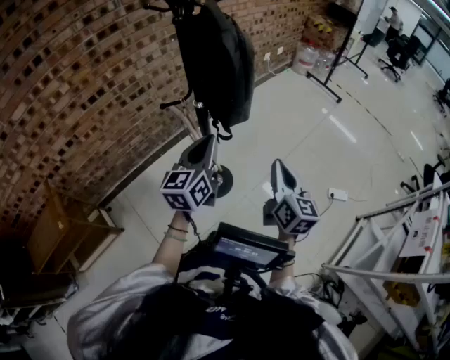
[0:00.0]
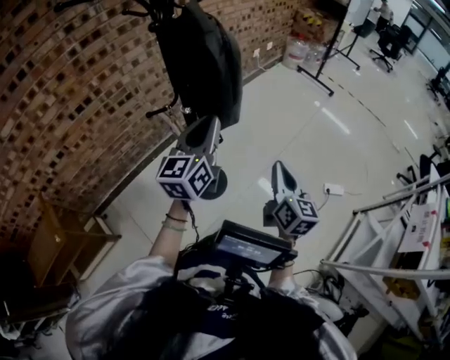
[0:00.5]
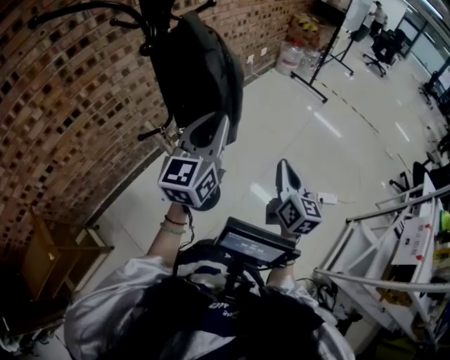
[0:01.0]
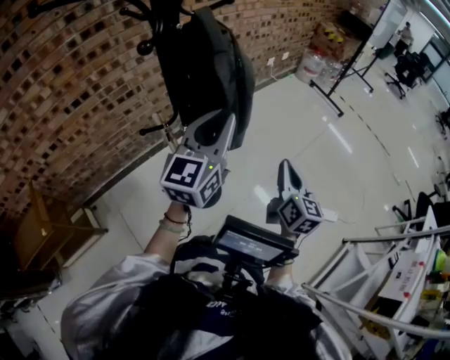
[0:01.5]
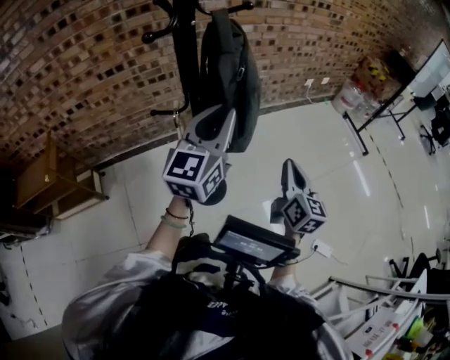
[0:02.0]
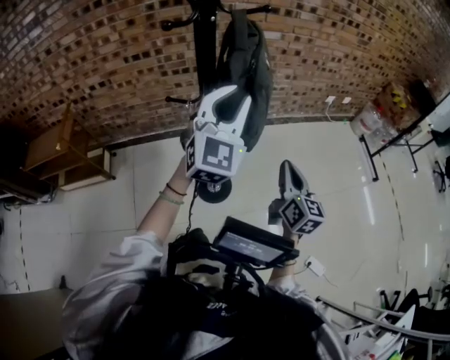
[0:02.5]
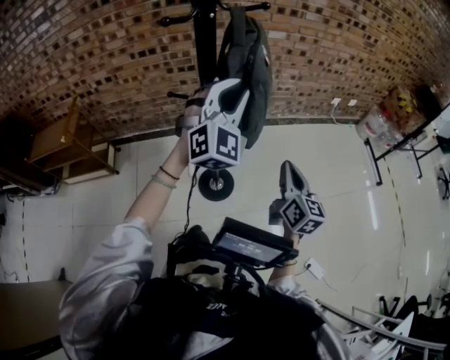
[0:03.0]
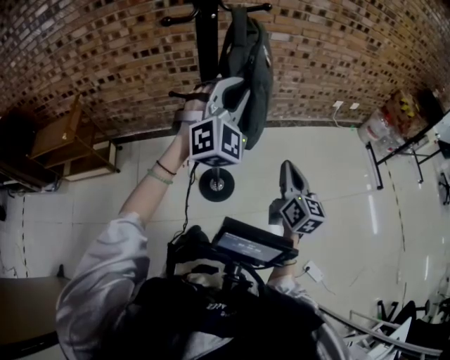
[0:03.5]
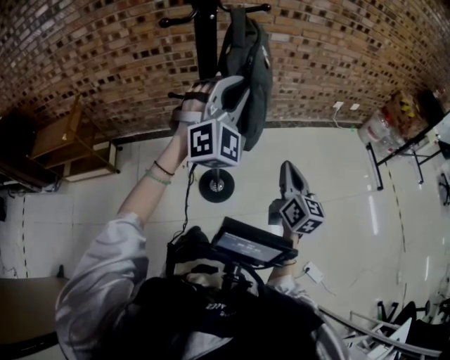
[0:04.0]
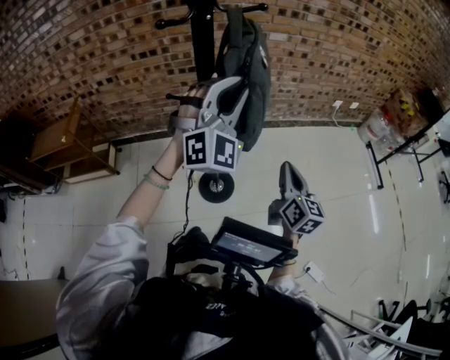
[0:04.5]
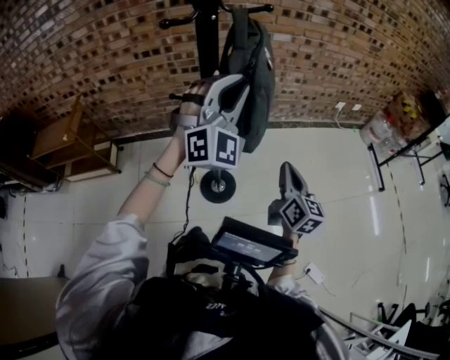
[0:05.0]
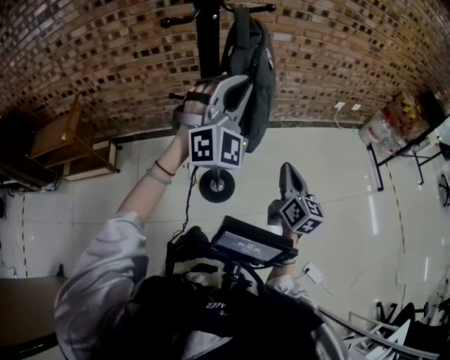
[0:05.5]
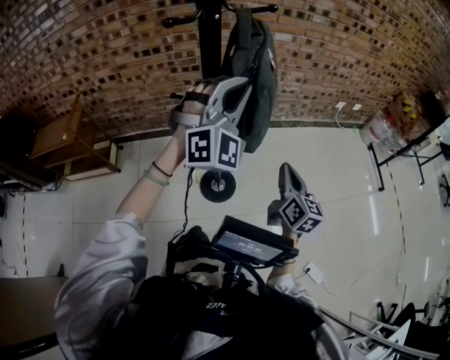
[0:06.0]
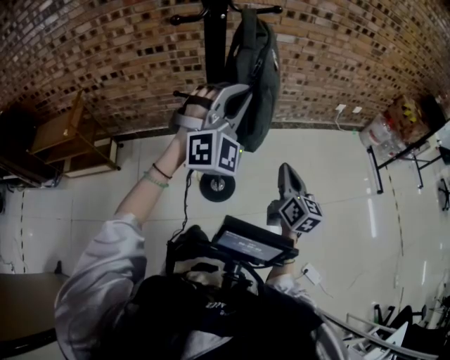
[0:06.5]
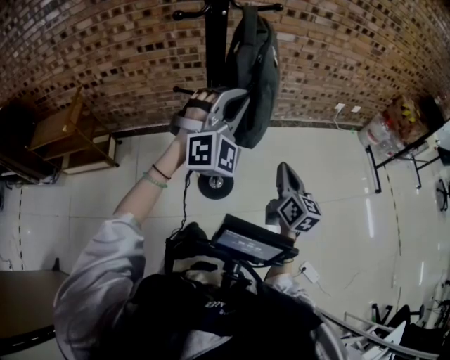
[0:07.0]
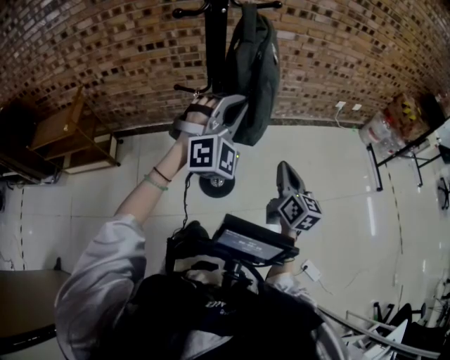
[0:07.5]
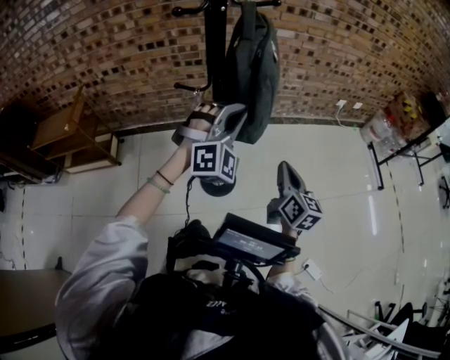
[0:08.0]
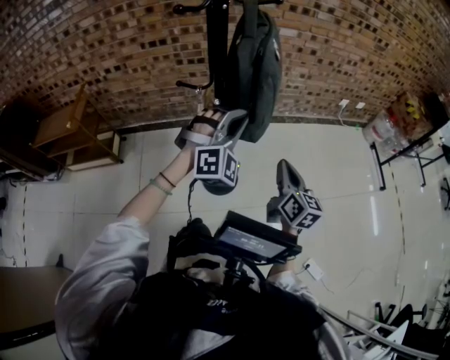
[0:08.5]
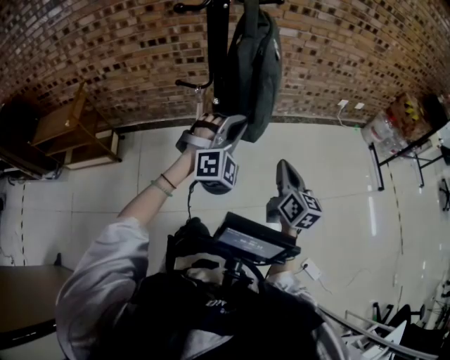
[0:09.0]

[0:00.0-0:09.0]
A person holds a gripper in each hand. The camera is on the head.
0.0 to 2.0 s: The right gripper is displaced forward by roughly 20 cm. Meanwhile the left gripper travels forward, upward and to the right by about 20 cm, and changes its angle by about 20 degrees.
2.0 to 4.5 s: The left gripper rolls clockwise, seen from behind, by approximately 70 degrees.
4.5 to 7.0 s: There are only small adjustments of the grippers.
7.0 to 9.0 s: The left gripper is displaced downward by some 10 cm.

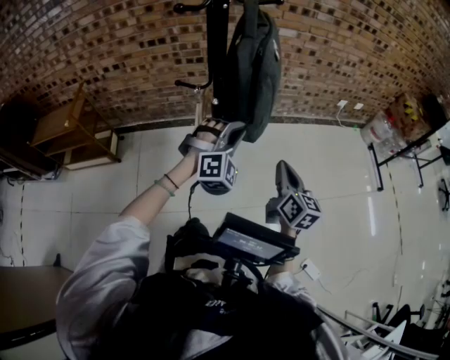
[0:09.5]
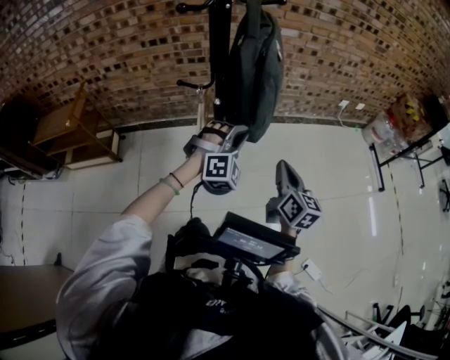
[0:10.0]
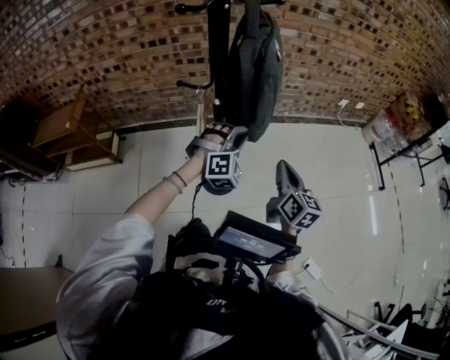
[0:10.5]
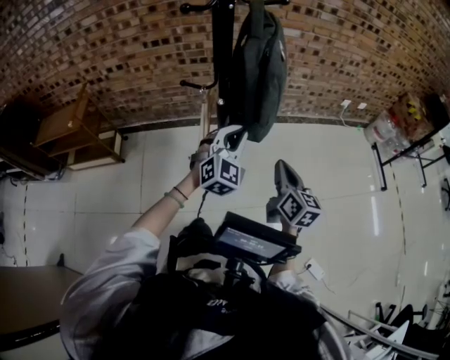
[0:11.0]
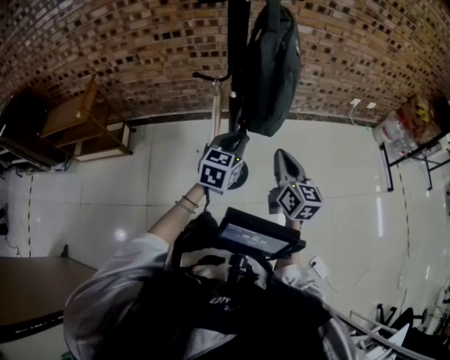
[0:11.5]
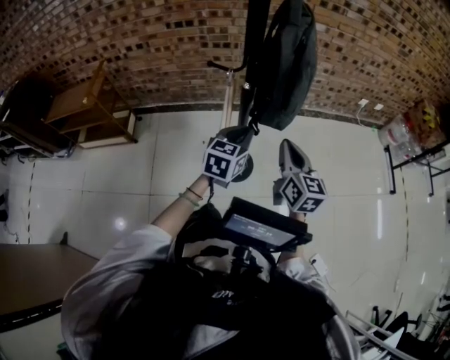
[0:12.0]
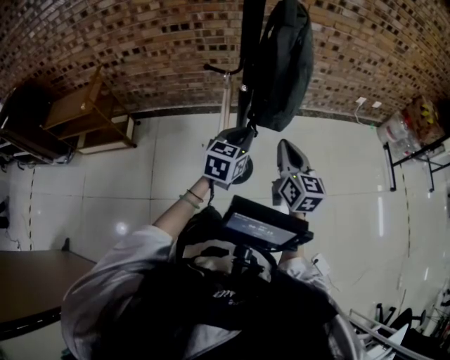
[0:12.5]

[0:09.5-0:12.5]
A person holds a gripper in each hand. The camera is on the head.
9.5 to 11.0 s: The left gripper rotates approximately 30 degrees.
11.0 to 12.5 s: The left gripper heads downward, covering some 5 cm, and twists approximately 40 degrees counterclockwise, seen from behind. The right gripper moves to the left, about 5 cm.

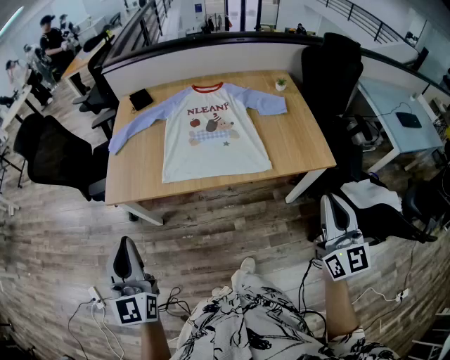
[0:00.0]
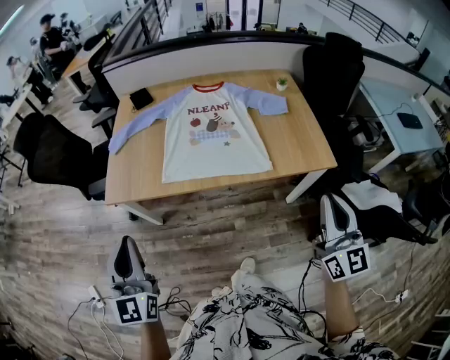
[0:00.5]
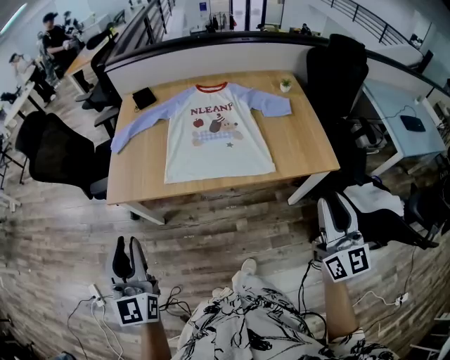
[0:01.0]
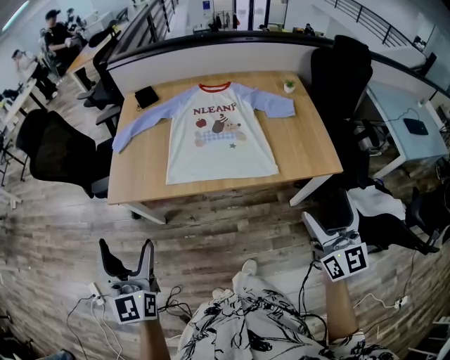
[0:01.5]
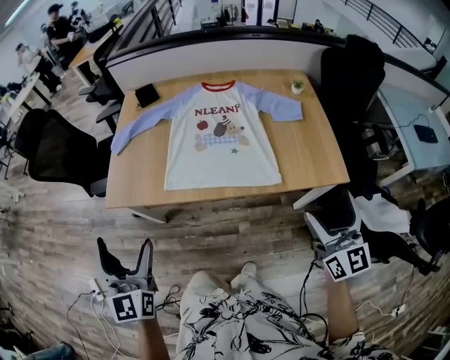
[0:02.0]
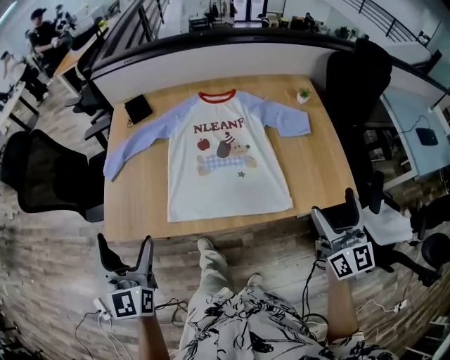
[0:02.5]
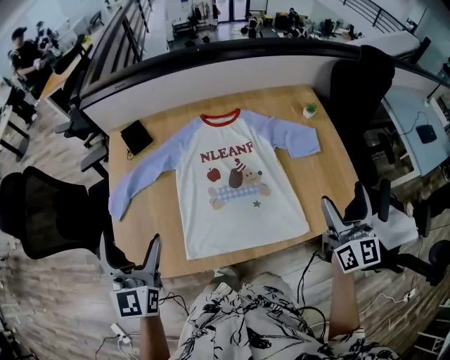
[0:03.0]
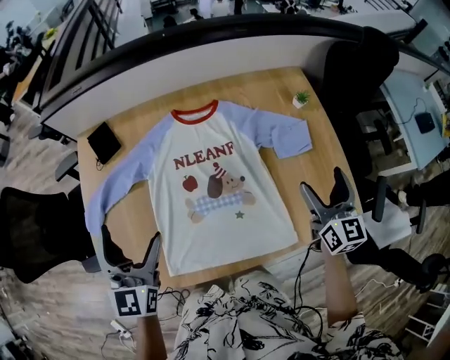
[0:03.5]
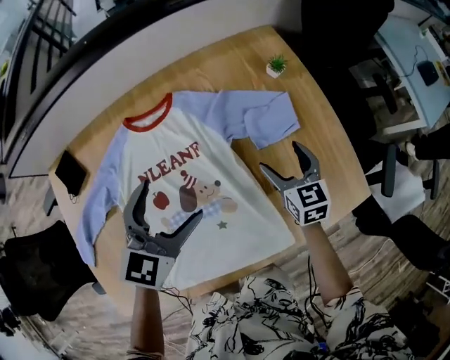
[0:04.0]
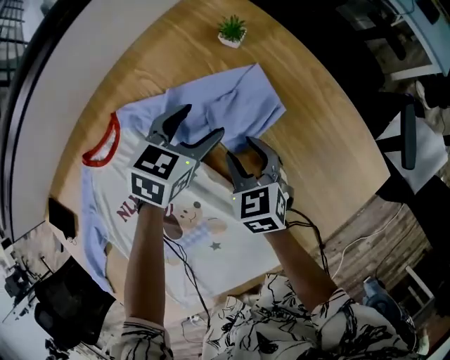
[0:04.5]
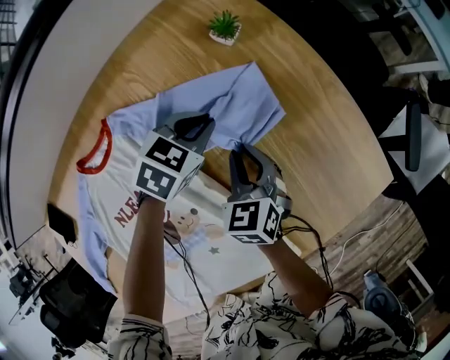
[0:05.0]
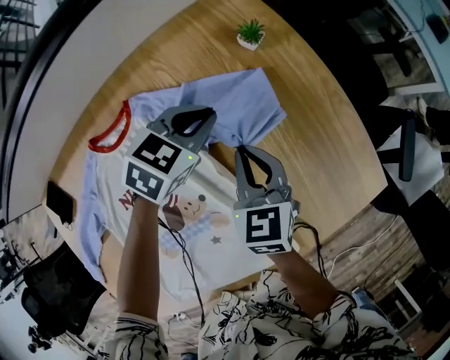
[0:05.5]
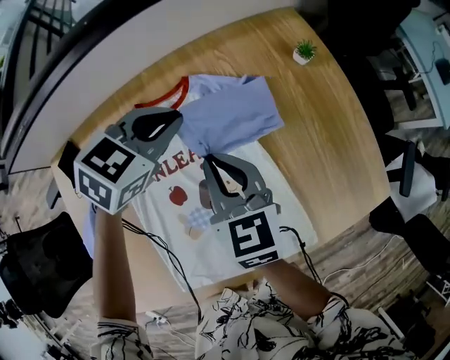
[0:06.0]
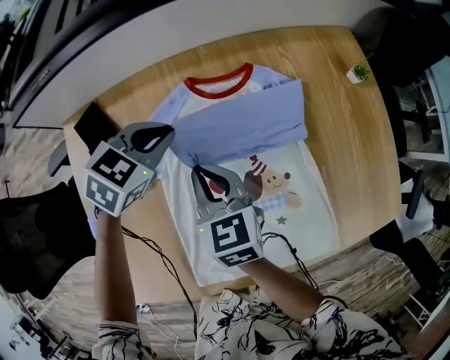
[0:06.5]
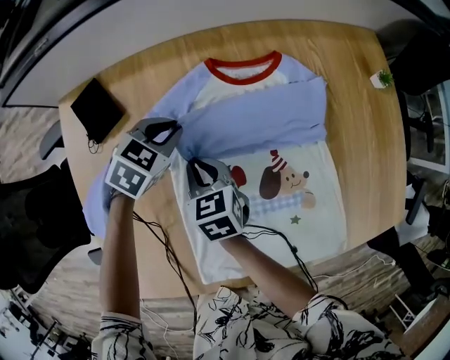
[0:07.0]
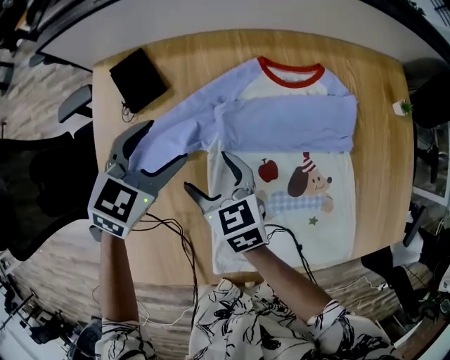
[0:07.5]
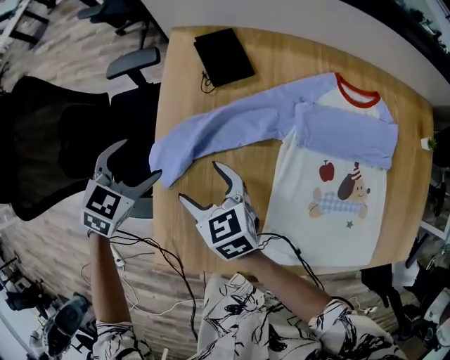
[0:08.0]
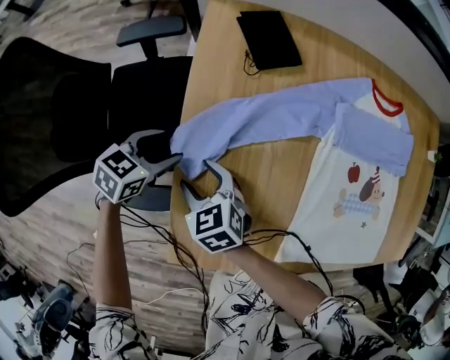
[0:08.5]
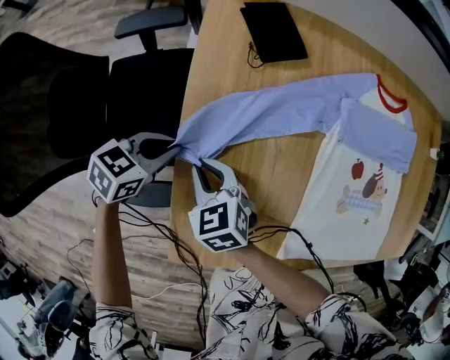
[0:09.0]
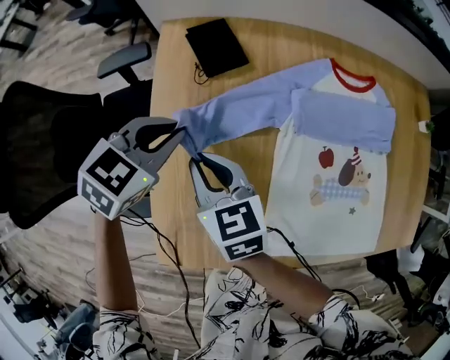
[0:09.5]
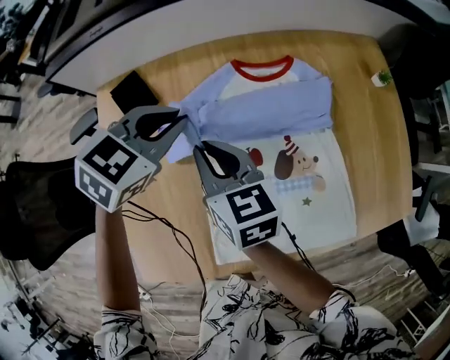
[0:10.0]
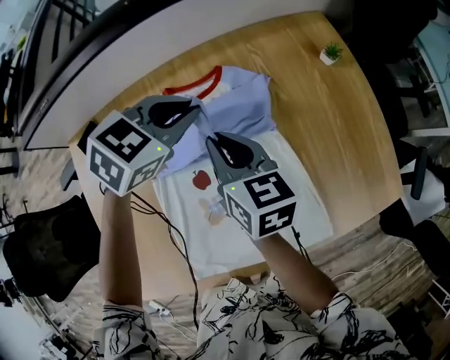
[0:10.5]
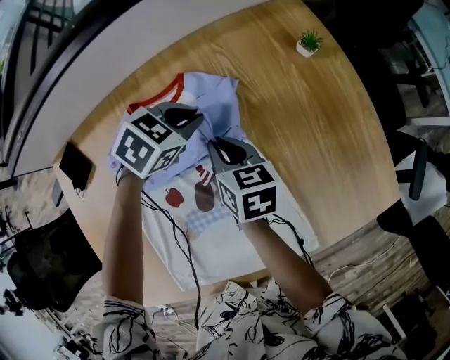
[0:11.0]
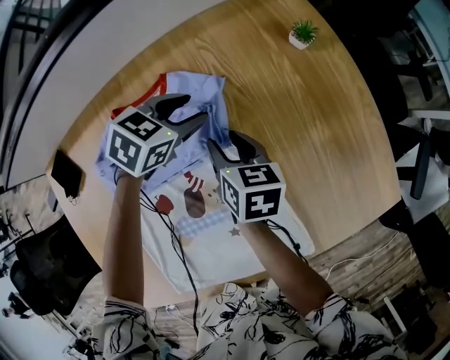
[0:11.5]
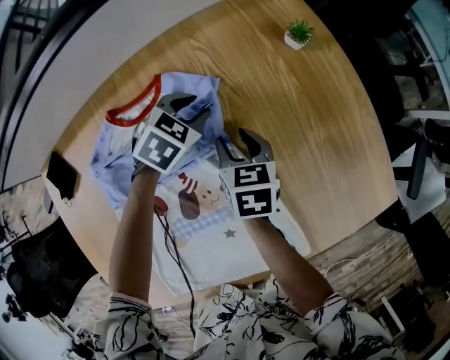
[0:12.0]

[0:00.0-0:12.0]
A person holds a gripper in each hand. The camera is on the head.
0.0 to 2.0 s: The grippers both shift forward by approximately 10 cm. The right gripper opens up; the left gripper opens up.
2.0 to 4.0 s: Both grippers are carried roughly 50 cm. The right gripper angles its fingers downward, by about 30 degrees, while the left gripper changes its angle by approximately 60 degrees.
4.0 to 6.0 s: The right gripper shifts by some 25 cm, and closes; the left gripper reaches approximately 20 cm downward, then returns, swivels roughly 20 degrees, and closes its fingers.
6.0 to 8.0 s: Both grippers are carried about 60 cm. The right gripper rotates roughly 40 degrees, and opens. Meanwhile the left gripper rotates roughly 40 degrees, and opens up.
8.0 to 10.0 s: The left gripper changes place by about 40 cm, rotates about 30 degrees, and closes. The right gripper ends up about 30 cm from where it was, swivels about 30 degrees, and closes.
10.0 to 12.0 s: The grippers both shift to the right, forward and downward by roughly 40 cm. The right gripper rotates about 30 degrees.

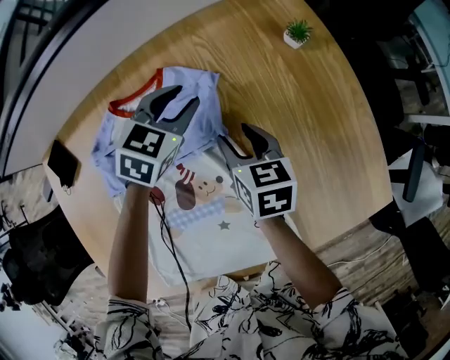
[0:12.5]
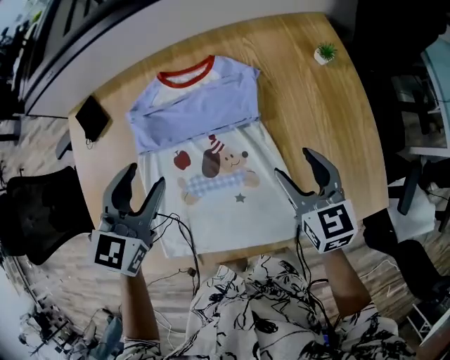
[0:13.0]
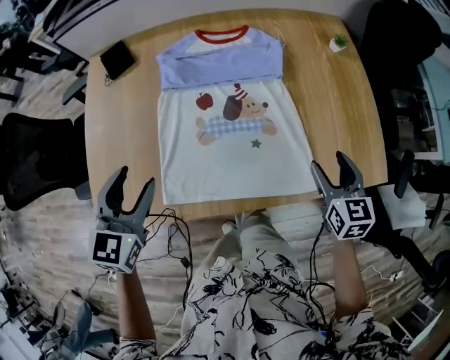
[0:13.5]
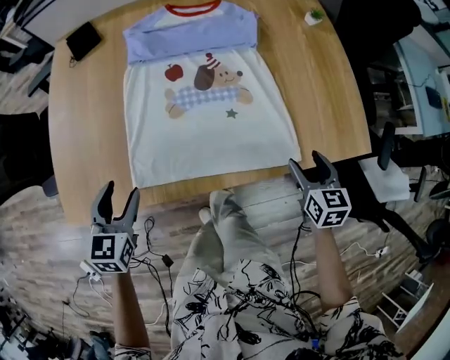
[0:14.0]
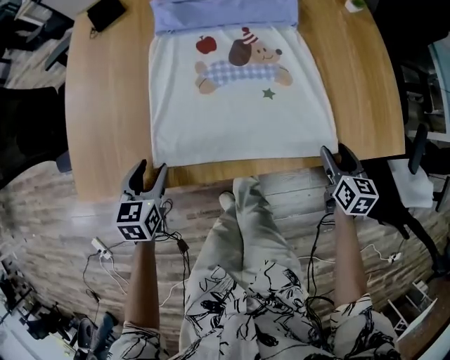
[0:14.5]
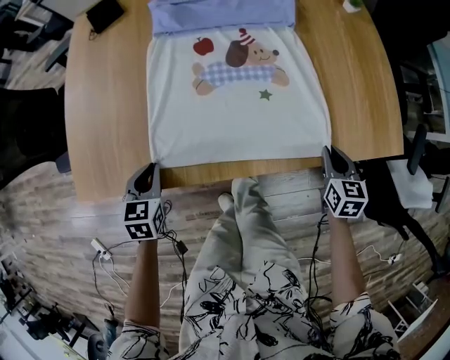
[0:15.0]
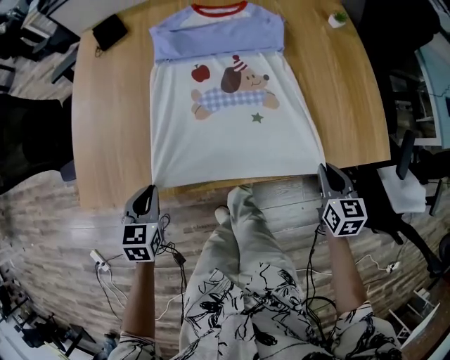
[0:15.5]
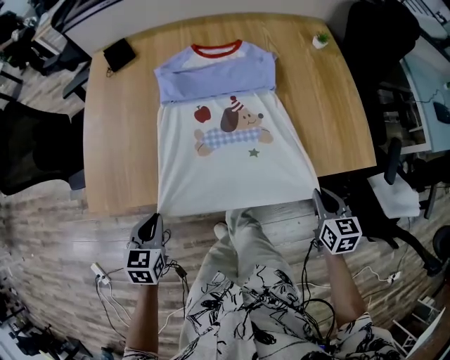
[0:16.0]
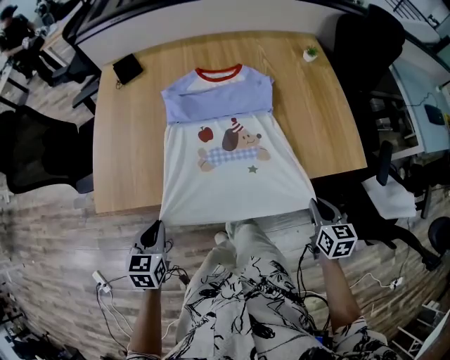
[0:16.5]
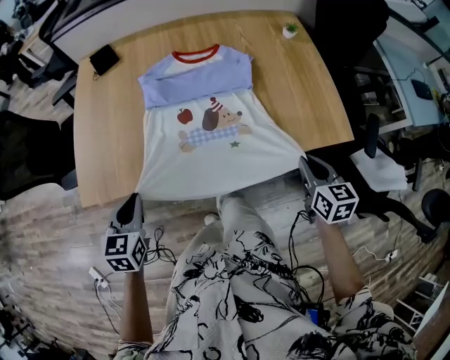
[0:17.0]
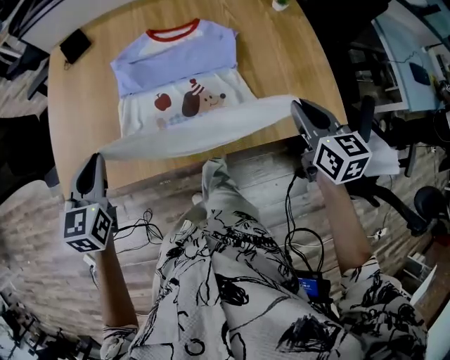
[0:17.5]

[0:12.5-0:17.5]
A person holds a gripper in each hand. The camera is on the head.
12.5 to 15.0 s: The right gripper travels backward by approximately 35 cm, rotates some 20 degrees, and closes its fingers. The left gripper is displaced backward and to the left by approximately 60 cm, and turns by approximately 50 degrees.
15.0 to 17.5 s: The grippers both shift upward by some 25 cm.
